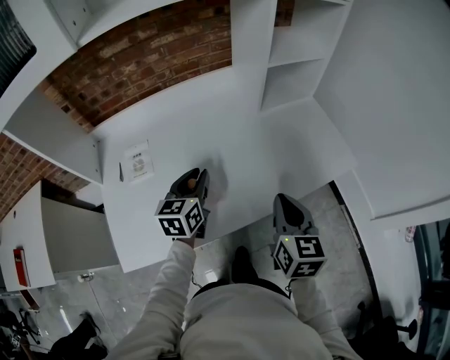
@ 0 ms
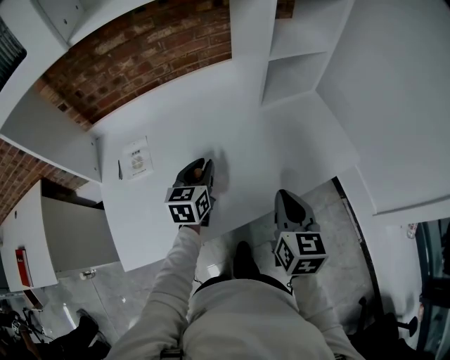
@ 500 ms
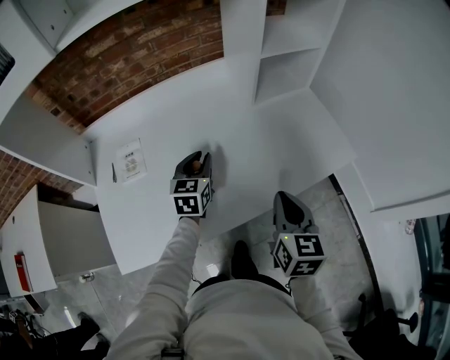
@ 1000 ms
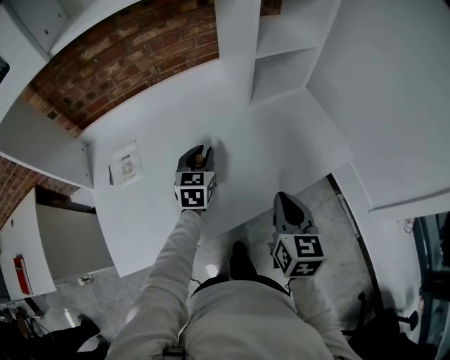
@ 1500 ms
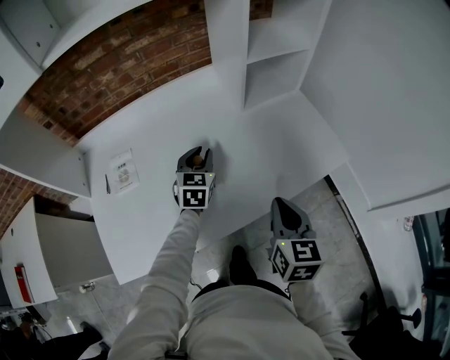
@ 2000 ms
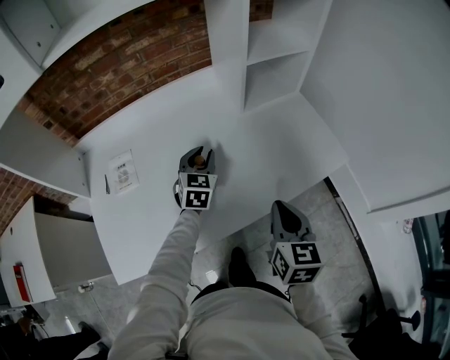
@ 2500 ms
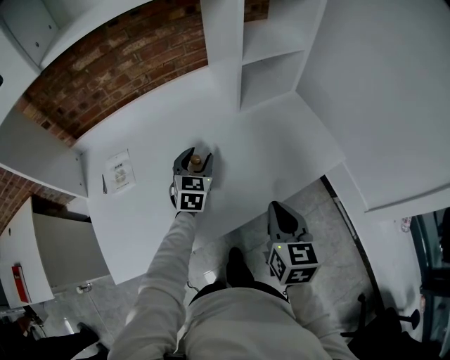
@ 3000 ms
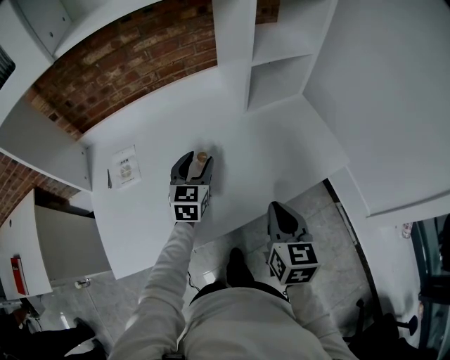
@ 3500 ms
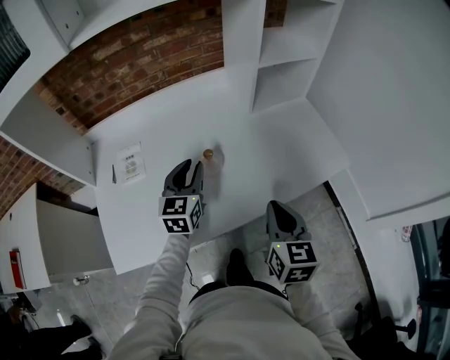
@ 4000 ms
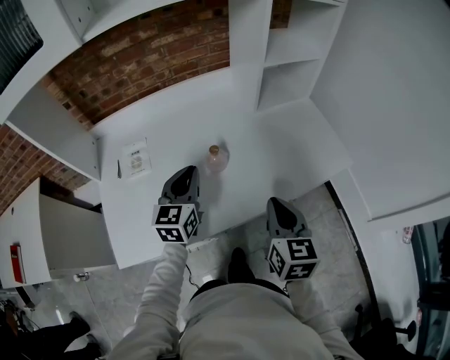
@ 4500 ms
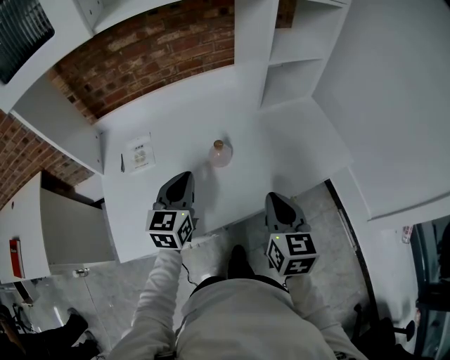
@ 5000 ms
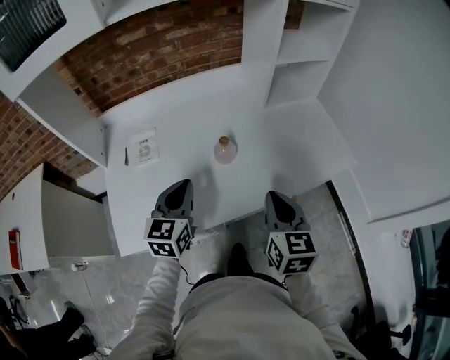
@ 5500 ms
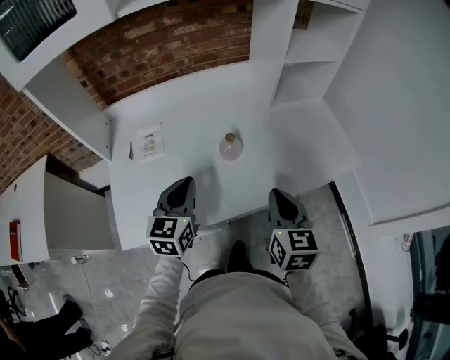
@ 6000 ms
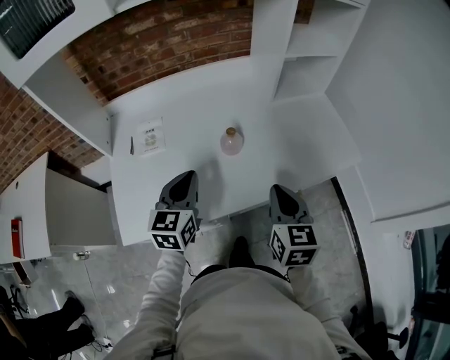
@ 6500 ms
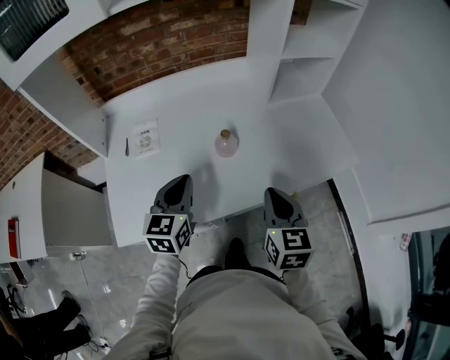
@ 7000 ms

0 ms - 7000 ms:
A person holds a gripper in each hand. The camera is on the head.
0 ms - 2000 ms: The left gripper travels forward and to the right by roughly 10 cm, and swivels approximately 20 degrees.
2000 ms - 3500 ms: The left gripper opens its fingers.
3500 ms - 5000 ms: The left gripper travels backward and to the left by about 15 cm, and closes. Meanwhile the right gripper ends up about 5 cm from where it was.
5000 ms - 7000 ms: The grippers stay close to where they were, moving slightly.

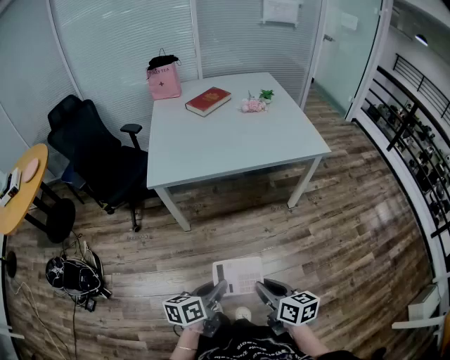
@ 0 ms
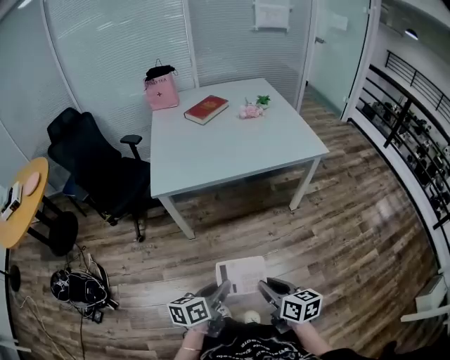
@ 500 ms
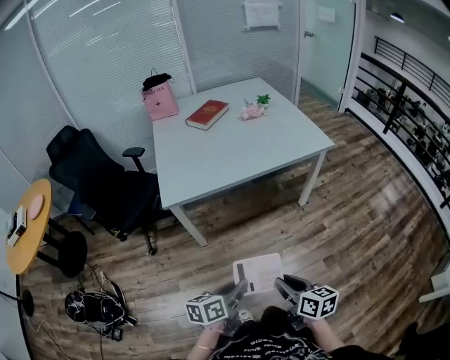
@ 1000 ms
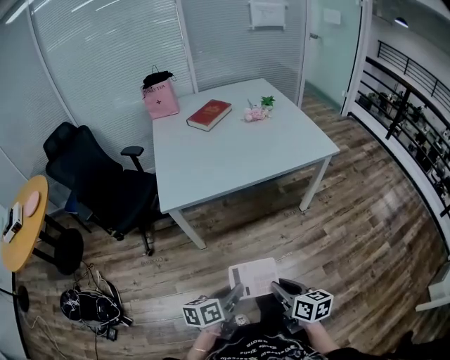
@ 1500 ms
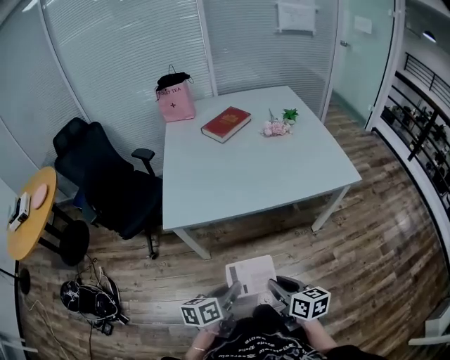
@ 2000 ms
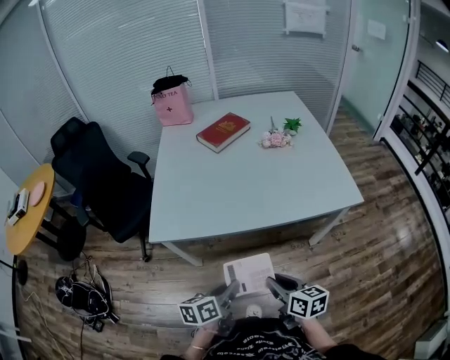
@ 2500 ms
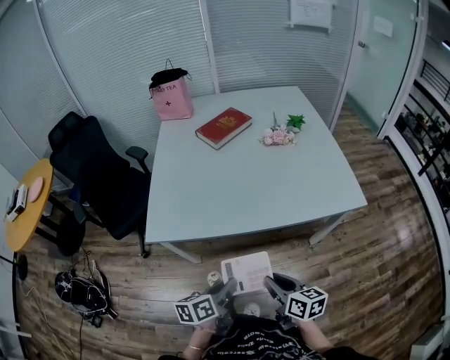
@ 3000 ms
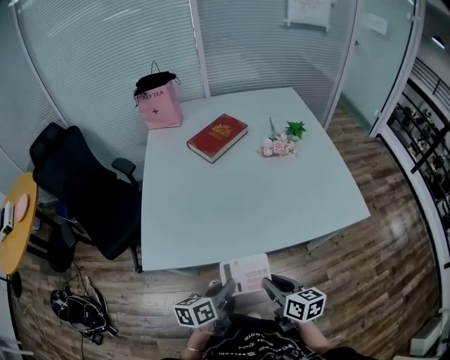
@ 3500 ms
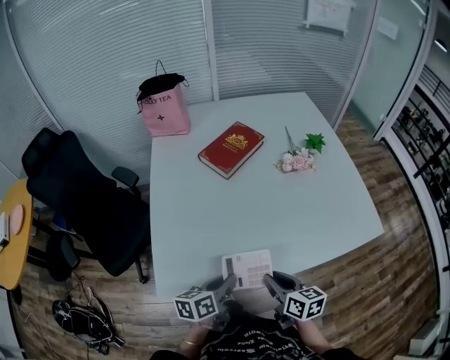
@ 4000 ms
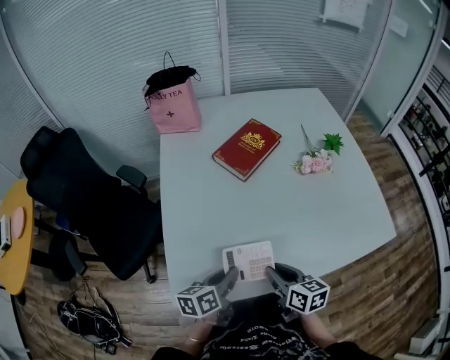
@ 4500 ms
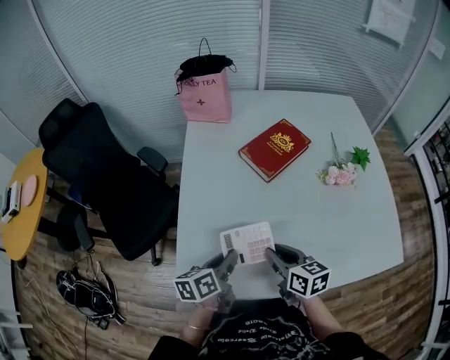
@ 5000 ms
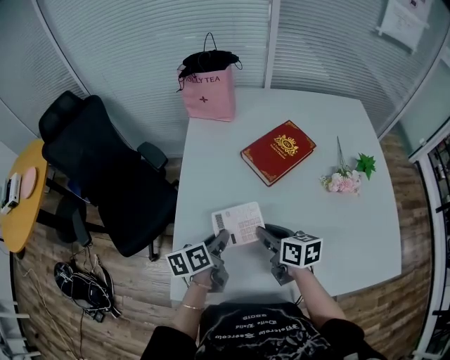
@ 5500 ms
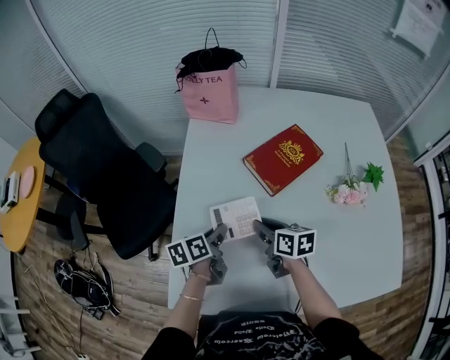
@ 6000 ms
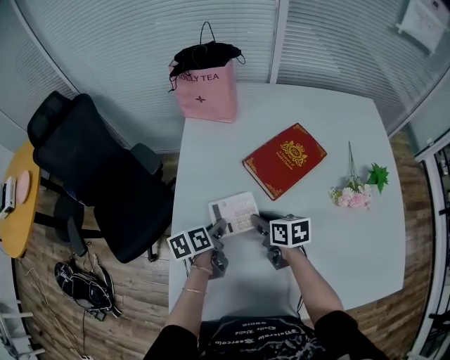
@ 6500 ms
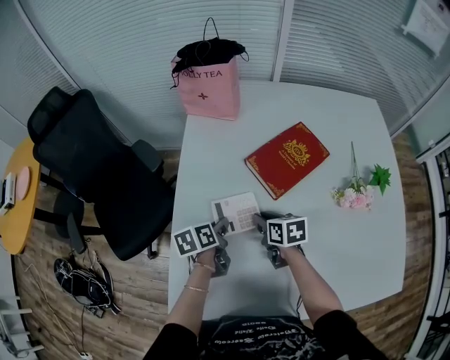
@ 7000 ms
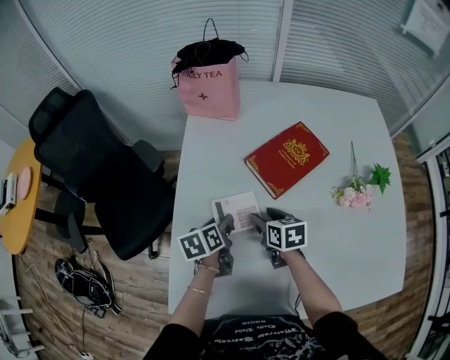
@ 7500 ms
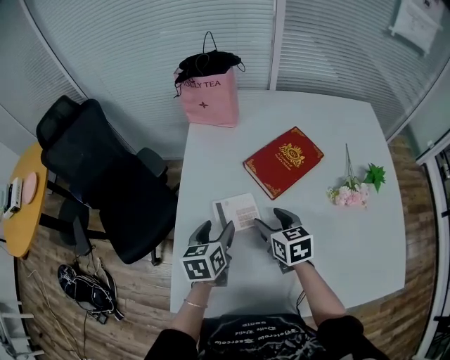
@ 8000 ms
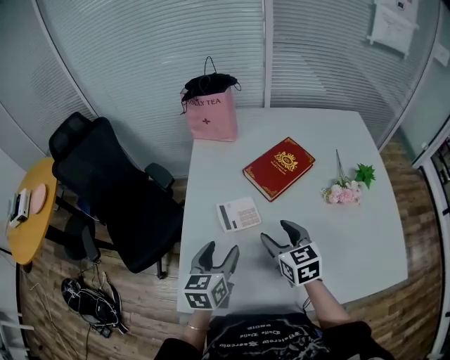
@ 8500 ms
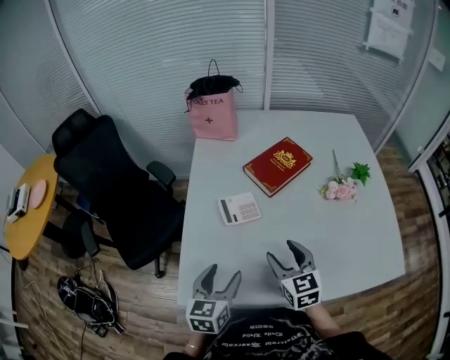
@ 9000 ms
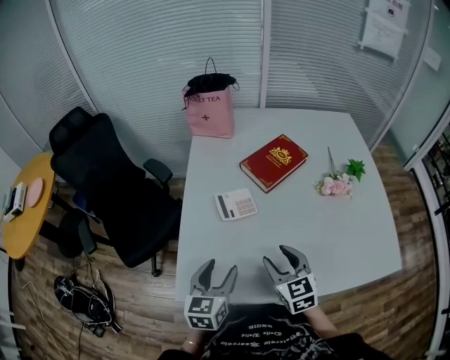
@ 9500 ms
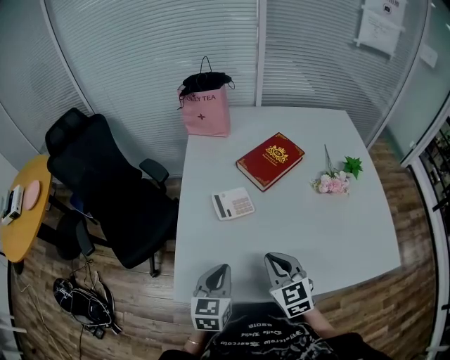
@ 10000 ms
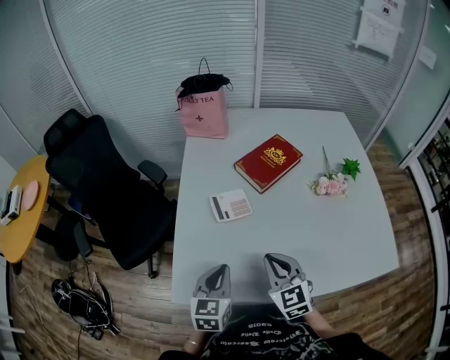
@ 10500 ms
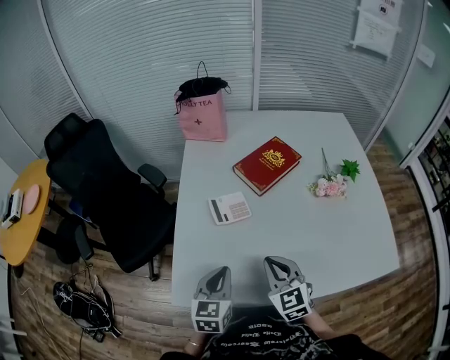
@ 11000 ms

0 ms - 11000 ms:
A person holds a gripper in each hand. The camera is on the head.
0 ms - 2000 ms: Both grippers travel together forward, about 20 cm.
2000 ms - 3500 ms: Both grippers move forward, about 25 cm.
3500 ms - 5500 ms: Both grippers move forward and to the left, approximately 40 cm.
5500 ms - 7500 ms: The two grippers go roughly 15 cm forward and downward. The left gripper opens up; the right gripper opens its fingers.
7500 ms - 9000 ms: The grippers both shift backward and upward by approximately 25 cm. The left gripper swivels about 40 degrees; the right gripper swivels some 30 degrees.
9000 ms - 11000 ms: The right gripper closes its fingers. Meanwhile the left gripper closes.

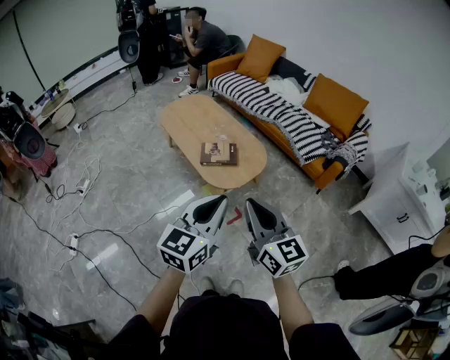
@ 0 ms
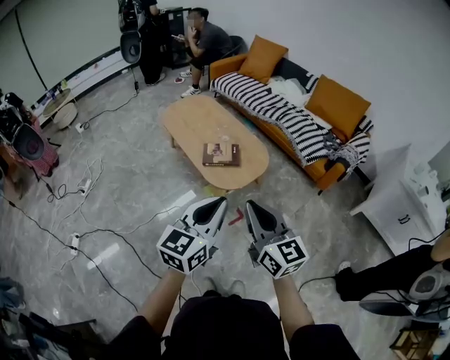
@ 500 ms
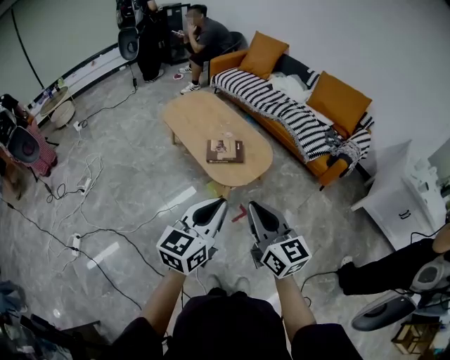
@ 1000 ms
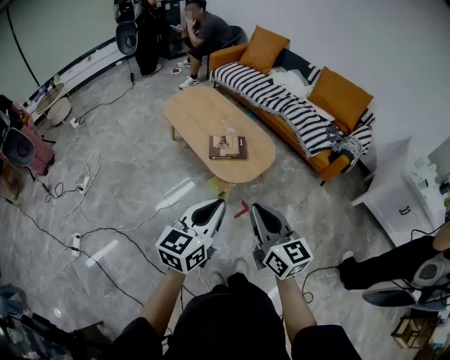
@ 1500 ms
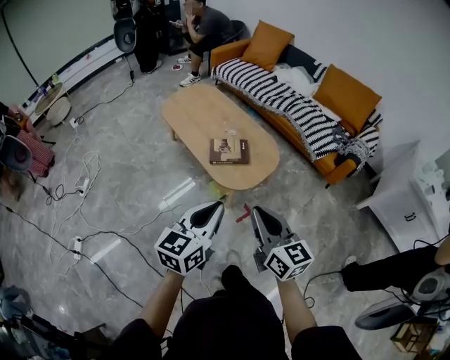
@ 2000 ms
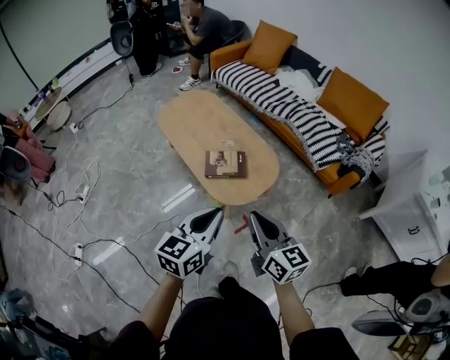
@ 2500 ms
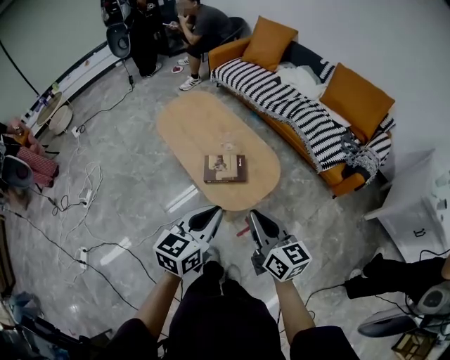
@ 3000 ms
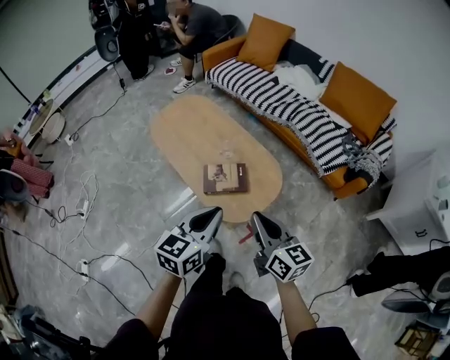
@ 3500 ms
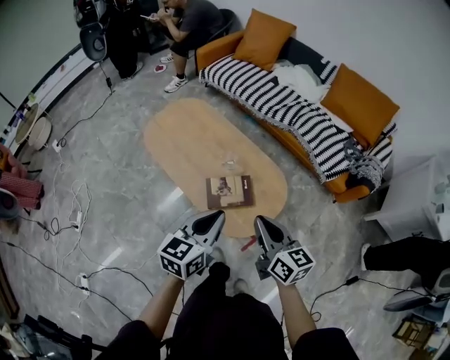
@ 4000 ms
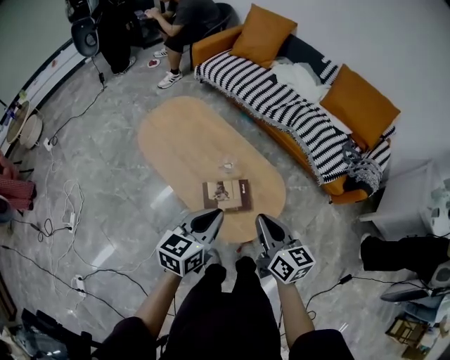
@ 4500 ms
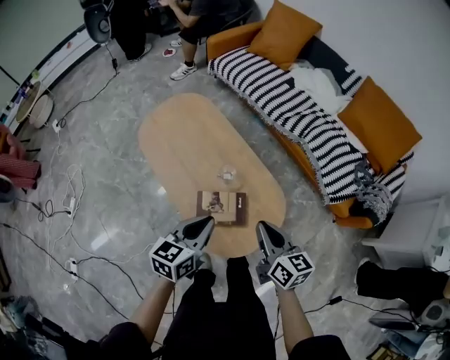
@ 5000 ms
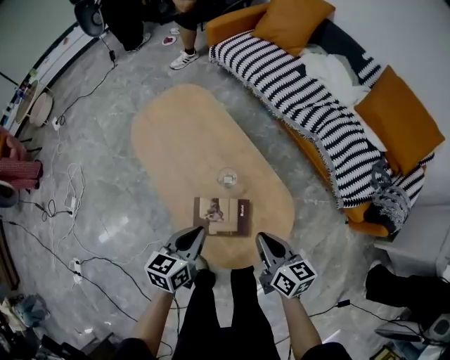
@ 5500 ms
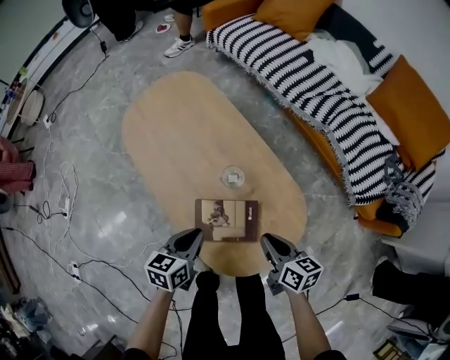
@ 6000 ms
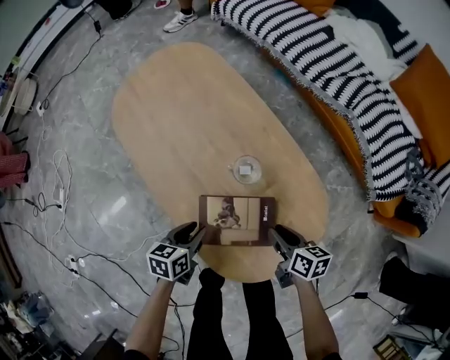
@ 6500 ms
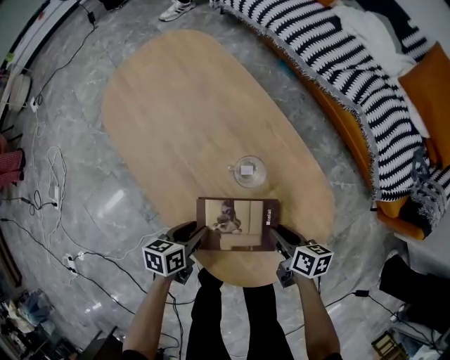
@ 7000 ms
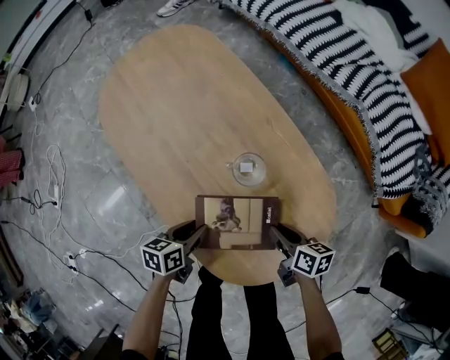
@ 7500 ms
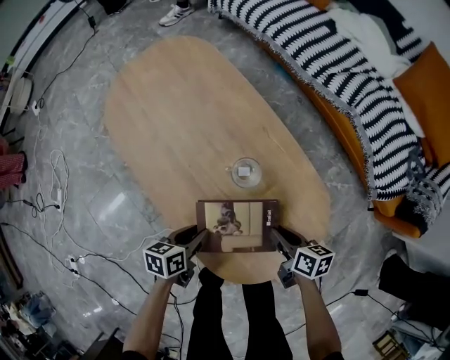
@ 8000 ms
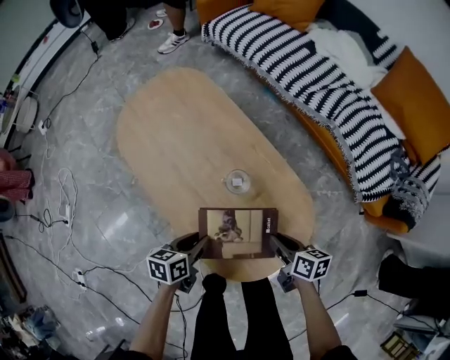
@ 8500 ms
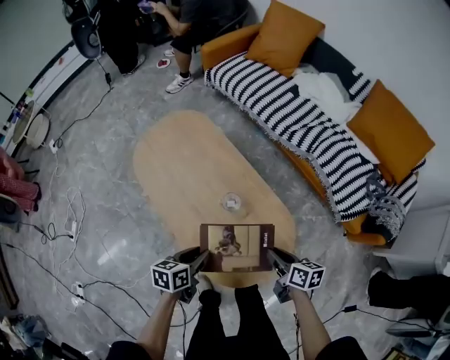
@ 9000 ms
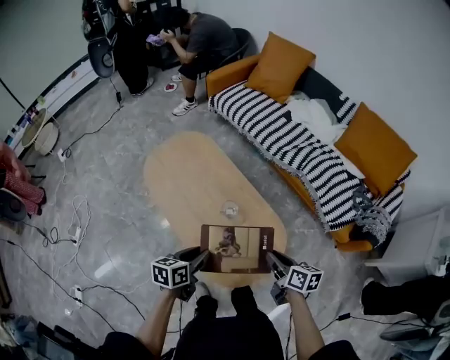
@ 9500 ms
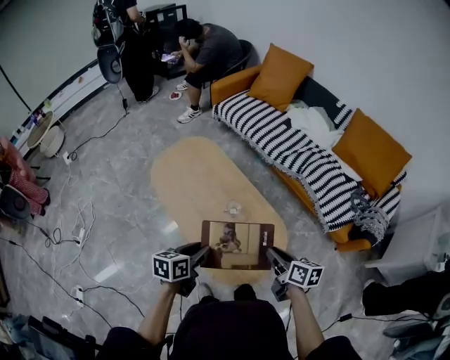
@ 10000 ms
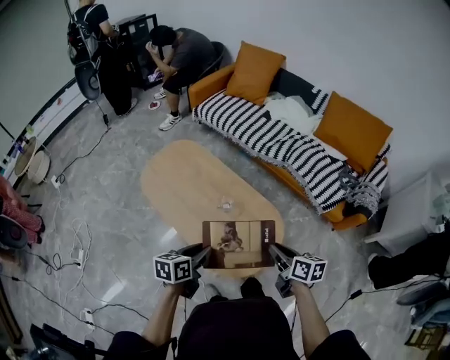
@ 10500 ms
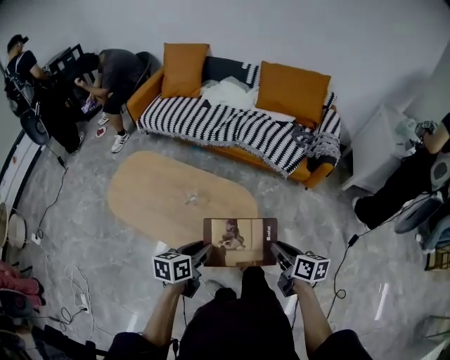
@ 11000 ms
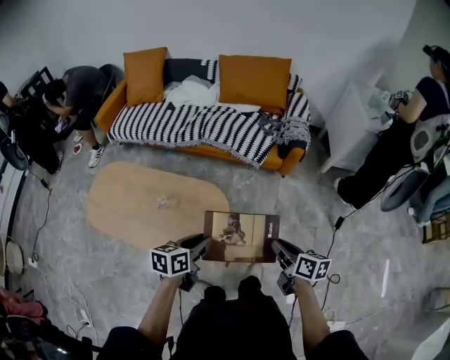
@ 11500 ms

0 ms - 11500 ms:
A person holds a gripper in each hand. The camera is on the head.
0 ms - 2000 ms: The right gripper is displaced forward, to the left and downward by about 15 cm. Meanwhile the left gripper goes approximately 15 cm to the left, forward and downward.
2000 ms - 4000 ms: Both grippers travel together forward, about 35 cm.
4000 ms - 6000 ms: The grippers both shift downward and forward by some 40 cm. The right gripper swivels some 30 degrees. The left gripper turns by about 30 degrees.
6000 ms - 7500 ms: The grippers both shift downward by approximately 20 cm. The left gripper opens.
7500 ms - 9500 ms: The grippers both shift upward by roughly 40 cm.
9500 ms - 11500 ms: The left gripper changes place by some 25 cm, and changes its angle by about 40 degrees, while the right gripper moves approximately 35 cm, and turns by roughly 40 degrees.
